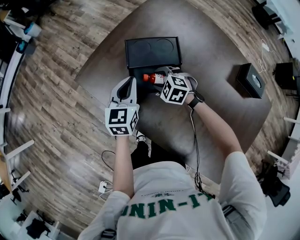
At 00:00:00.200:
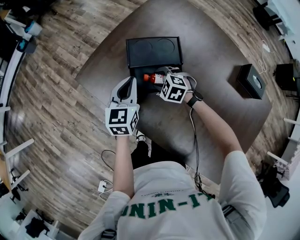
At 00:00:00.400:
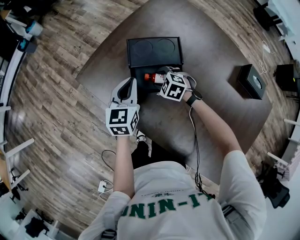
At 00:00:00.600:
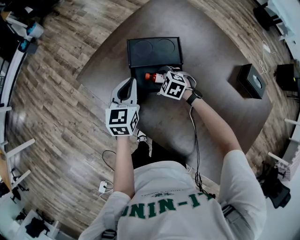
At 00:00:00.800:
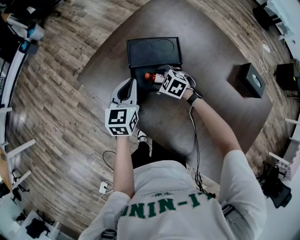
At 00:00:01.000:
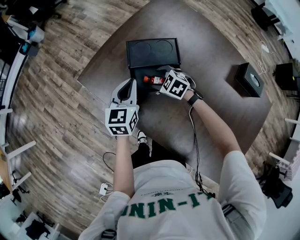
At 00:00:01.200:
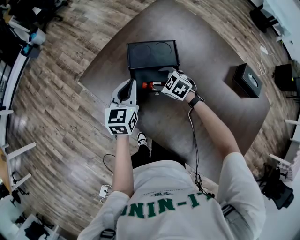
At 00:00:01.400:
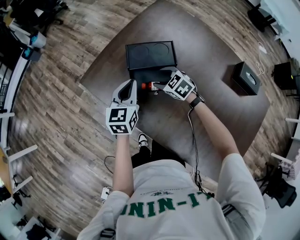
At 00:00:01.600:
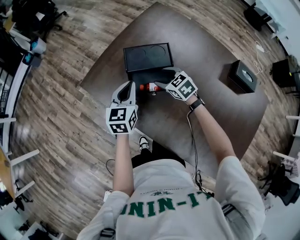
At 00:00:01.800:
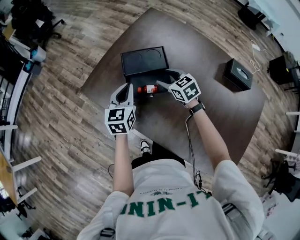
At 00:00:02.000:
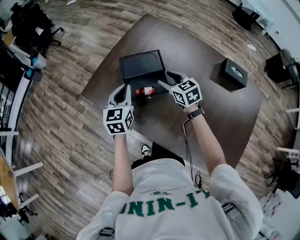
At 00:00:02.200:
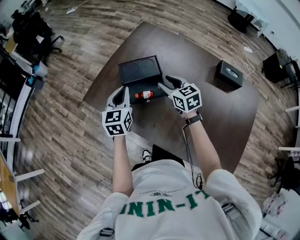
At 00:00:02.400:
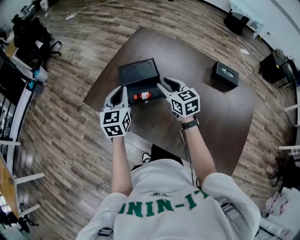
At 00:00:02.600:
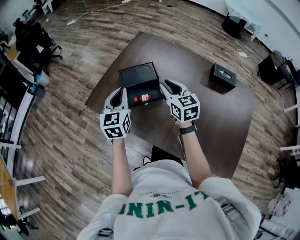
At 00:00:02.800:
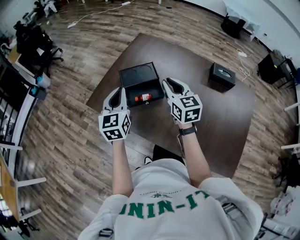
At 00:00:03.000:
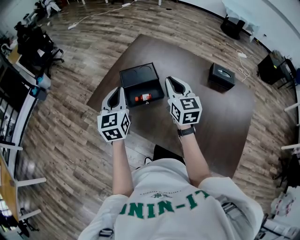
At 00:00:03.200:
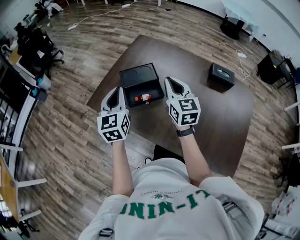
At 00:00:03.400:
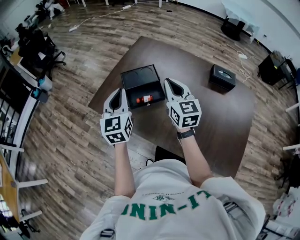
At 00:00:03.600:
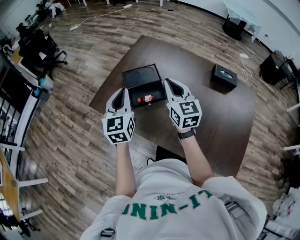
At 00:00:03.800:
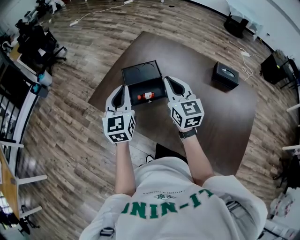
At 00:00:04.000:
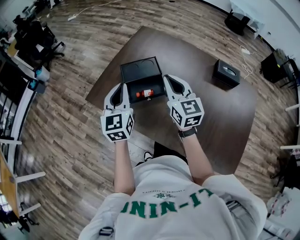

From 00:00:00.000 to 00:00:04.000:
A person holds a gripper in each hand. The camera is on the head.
From 00:00:00.000 to 00:00:01.400: The right gripper swivels about 20 degrees.
From 00:00:01.400 to 00:00:02.600: The left gripper goes roughly 15 cm upward and backward. The right gripper travels upward and backward by roughly 25 cm, points its fingers some 30 degrees further upward, and closes up.
From 00:00:02.600 to 00:00:04.000: The right gripper ends up roughly 5 cm from where it was.

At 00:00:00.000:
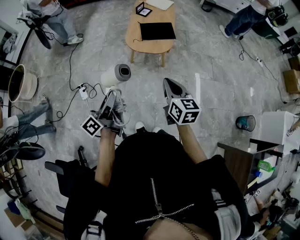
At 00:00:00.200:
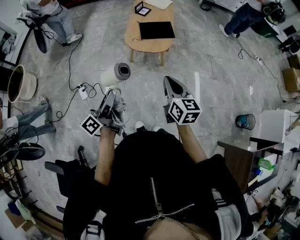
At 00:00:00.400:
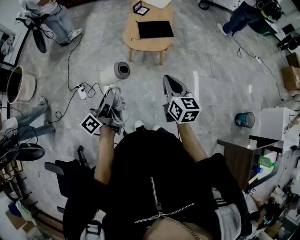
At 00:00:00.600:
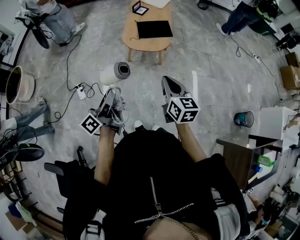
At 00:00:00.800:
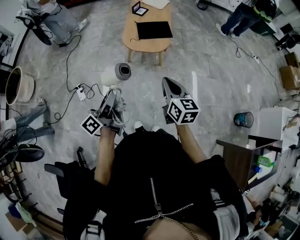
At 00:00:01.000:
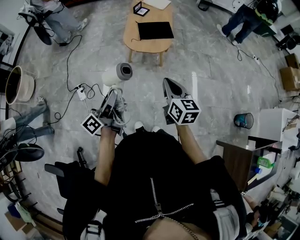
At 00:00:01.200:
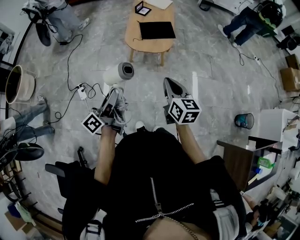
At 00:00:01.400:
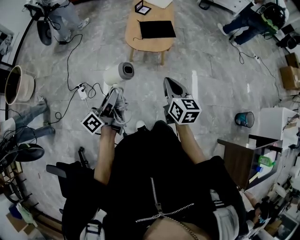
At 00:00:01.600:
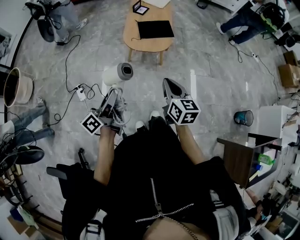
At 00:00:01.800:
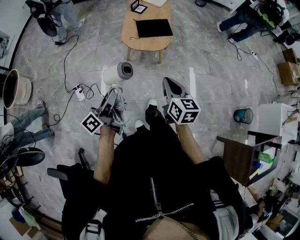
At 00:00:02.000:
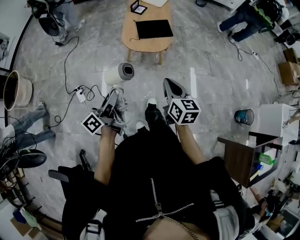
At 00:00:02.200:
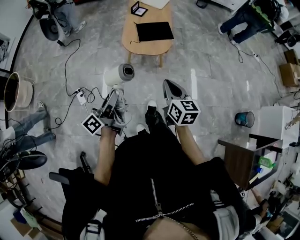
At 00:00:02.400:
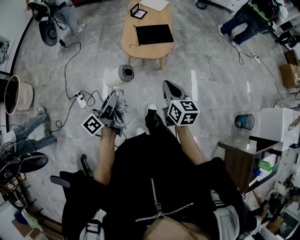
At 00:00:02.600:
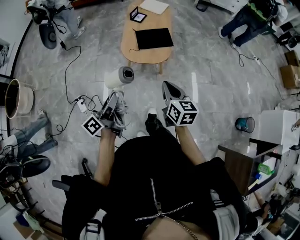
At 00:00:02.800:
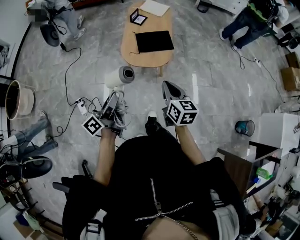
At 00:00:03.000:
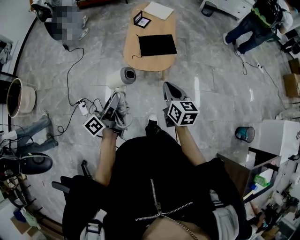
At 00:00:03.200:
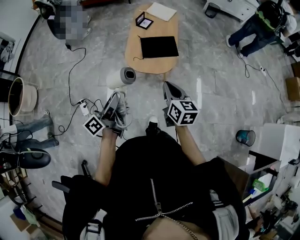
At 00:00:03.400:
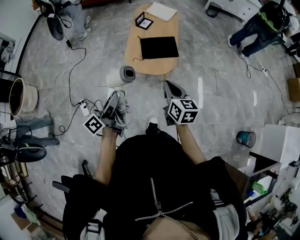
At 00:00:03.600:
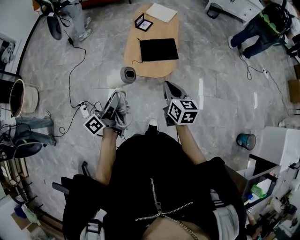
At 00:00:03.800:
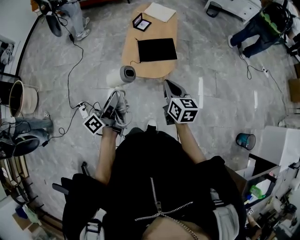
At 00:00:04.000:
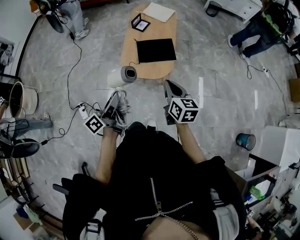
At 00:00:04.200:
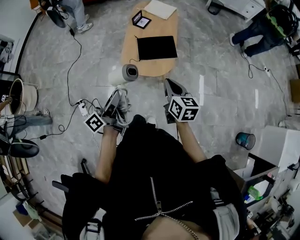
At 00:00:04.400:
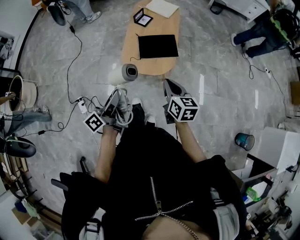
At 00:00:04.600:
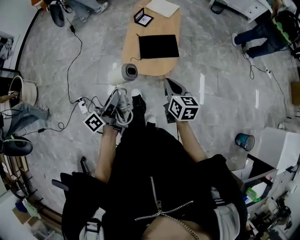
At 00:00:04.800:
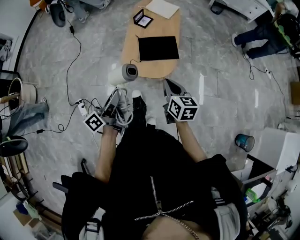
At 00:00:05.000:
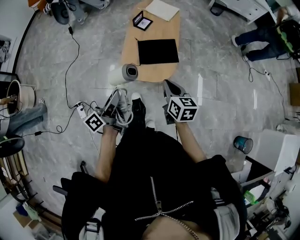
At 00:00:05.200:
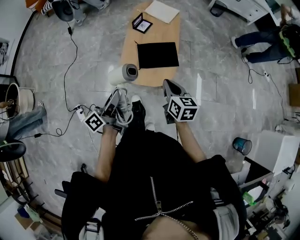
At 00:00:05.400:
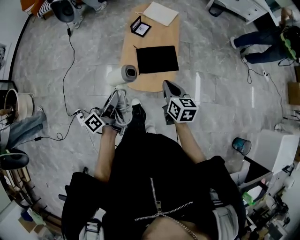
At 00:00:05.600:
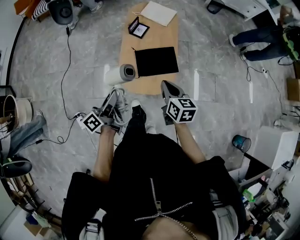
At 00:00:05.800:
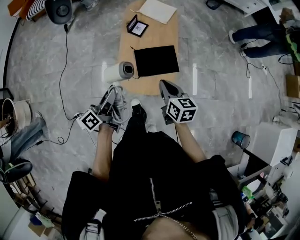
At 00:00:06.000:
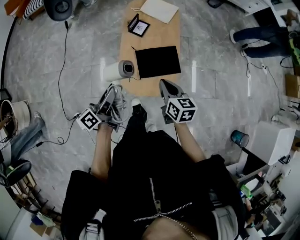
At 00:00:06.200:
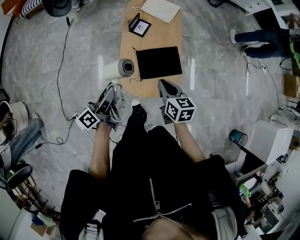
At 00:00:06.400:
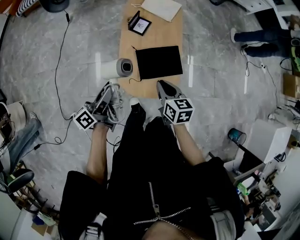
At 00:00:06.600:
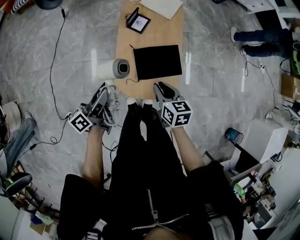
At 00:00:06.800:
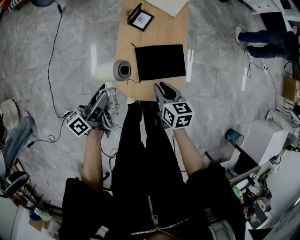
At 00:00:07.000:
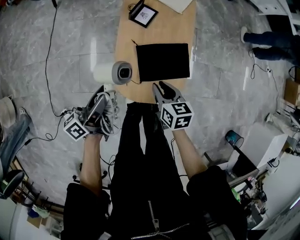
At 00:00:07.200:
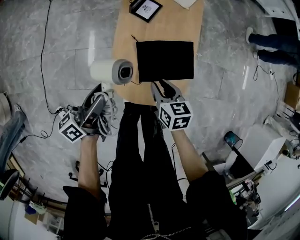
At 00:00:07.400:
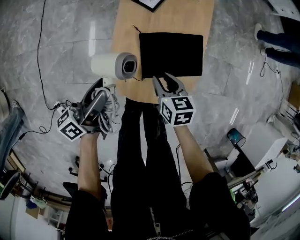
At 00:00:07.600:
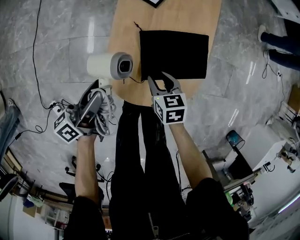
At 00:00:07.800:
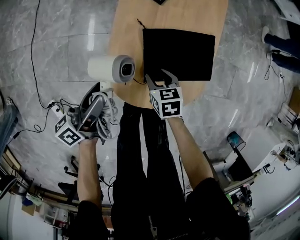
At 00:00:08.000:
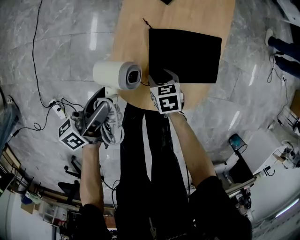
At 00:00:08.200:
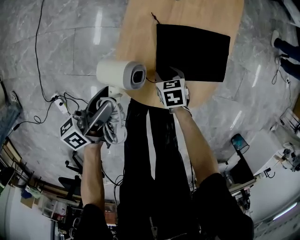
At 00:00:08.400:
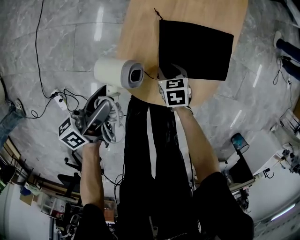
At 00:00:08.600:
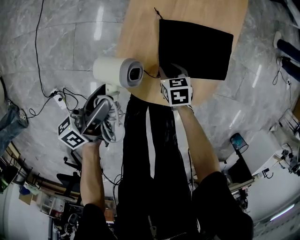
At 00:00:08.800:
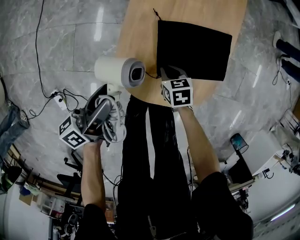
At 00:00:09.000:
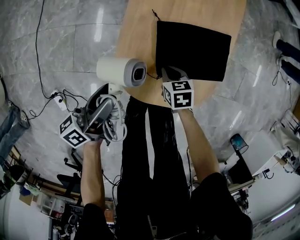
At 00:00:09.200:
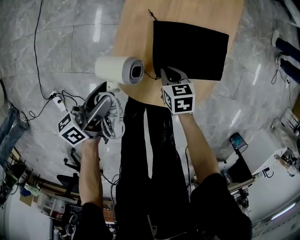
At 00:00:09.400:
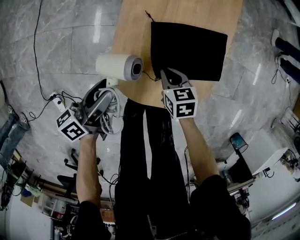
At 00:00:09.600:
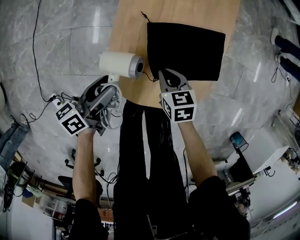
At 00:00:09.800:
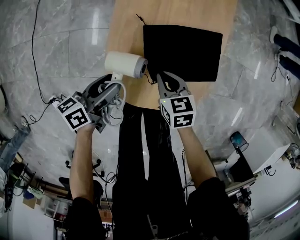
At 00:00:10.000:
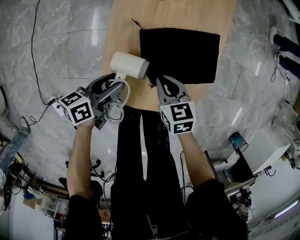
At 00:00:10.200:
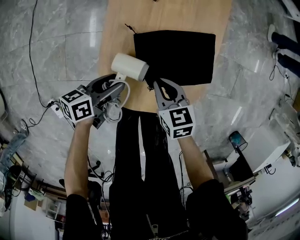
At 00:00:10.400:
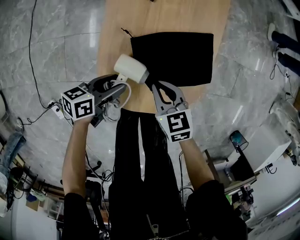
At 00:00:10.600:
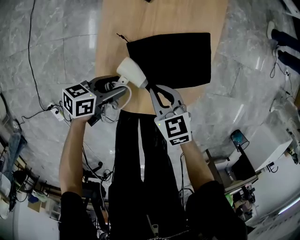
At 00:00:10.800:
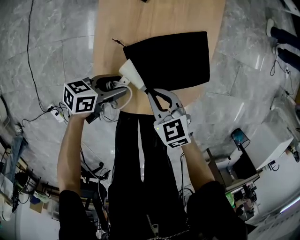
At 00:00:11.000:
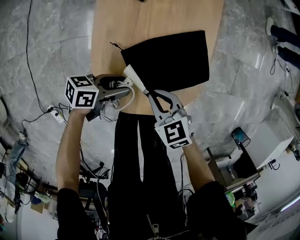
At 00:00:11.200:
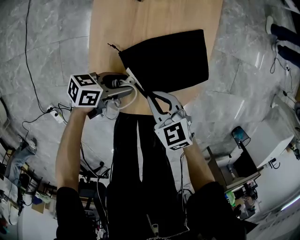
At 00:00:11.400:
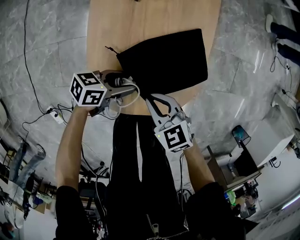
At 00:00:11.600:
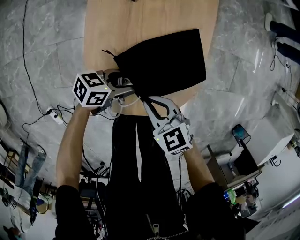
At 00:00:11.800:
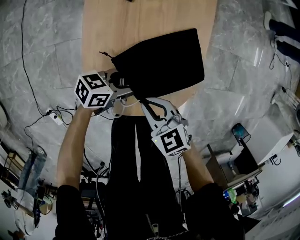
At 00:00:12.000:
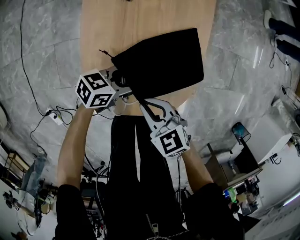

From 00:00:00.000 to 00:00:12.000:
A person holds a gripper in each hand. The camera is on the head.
From 00:00:00.000 to 00:00:01.600: There are only small adjustments of the grippers.
From 00:00:01.600 to 00:00:03.000: Both grippers travel together forward, some 15 cm.
From 00:00:03.000 to 00:00:04.400: The grippers both shift forward by approximately 10 cm.
From 00:00:04.400 to 00:00:06.000: Both grippers travel together forward, approximately 25 cm.
From 00:00:06.000 to 00:00:07.600: Both grippers move downward, approximately 30 cm. The right gripper rotates roughly 30 degrees, and opens its fingers.
From 00:00:07.600 to 00:00:09.000: The right gripper travels downward by some 10 cm, and closes up. Meanwhile the left gripper moves roughly 5 cm.
From 00:00:09.000 to 00:00:10.400: The left gripper is displaced downward and to the right by some 15 cm, and changes its angle by some 40 degrees. The right gripper moves upward, about 10 cm.
From 00:00:10.400 to 00:00:12.000: The left gripper ends up about 15 cm from where it was, and swivels about 30 degrees.

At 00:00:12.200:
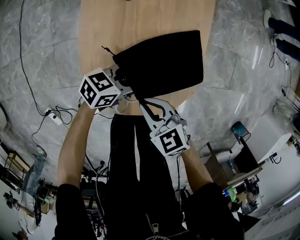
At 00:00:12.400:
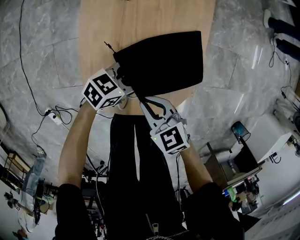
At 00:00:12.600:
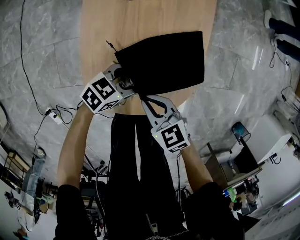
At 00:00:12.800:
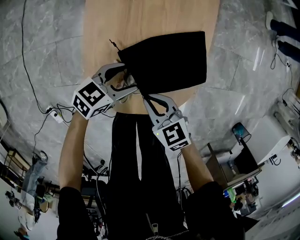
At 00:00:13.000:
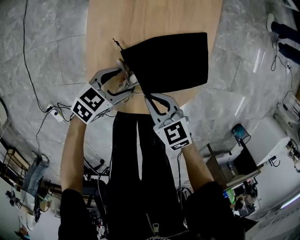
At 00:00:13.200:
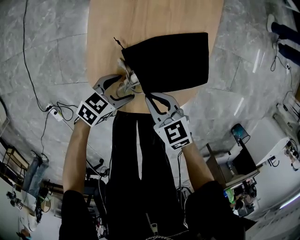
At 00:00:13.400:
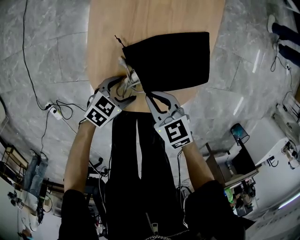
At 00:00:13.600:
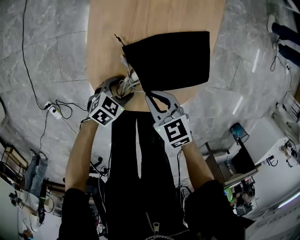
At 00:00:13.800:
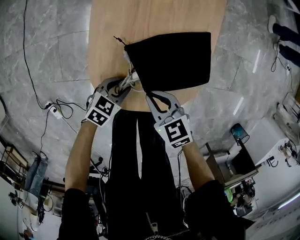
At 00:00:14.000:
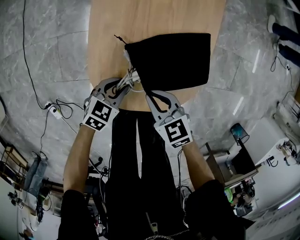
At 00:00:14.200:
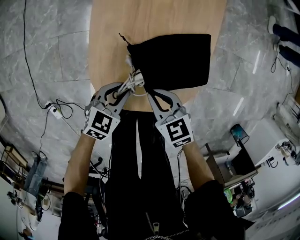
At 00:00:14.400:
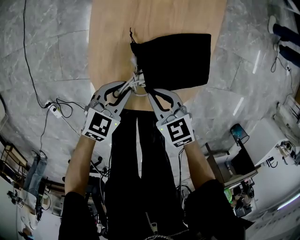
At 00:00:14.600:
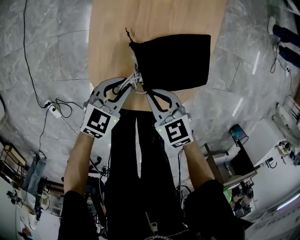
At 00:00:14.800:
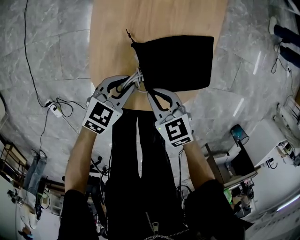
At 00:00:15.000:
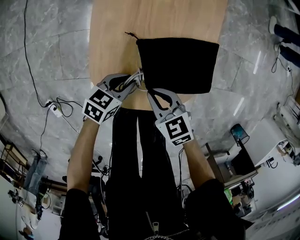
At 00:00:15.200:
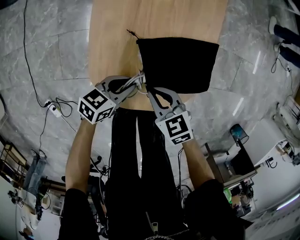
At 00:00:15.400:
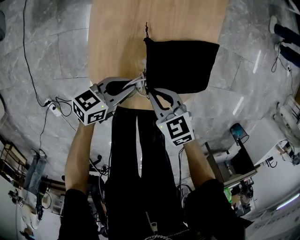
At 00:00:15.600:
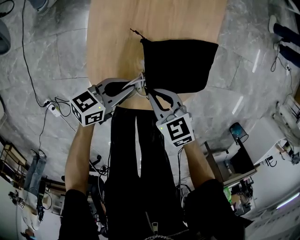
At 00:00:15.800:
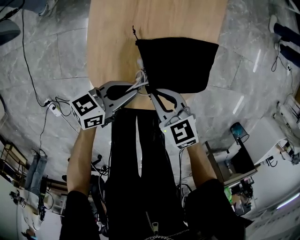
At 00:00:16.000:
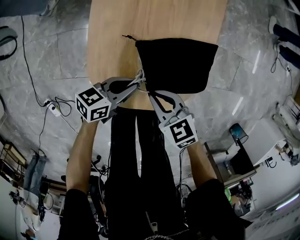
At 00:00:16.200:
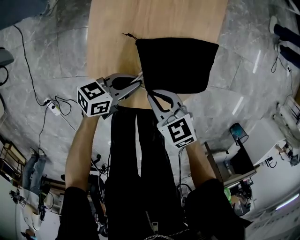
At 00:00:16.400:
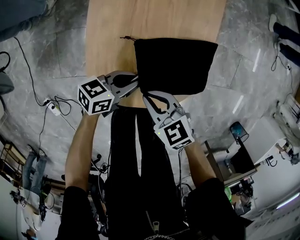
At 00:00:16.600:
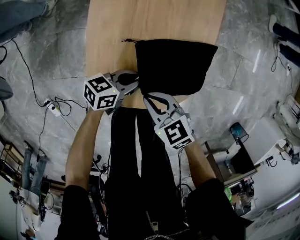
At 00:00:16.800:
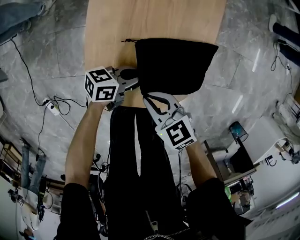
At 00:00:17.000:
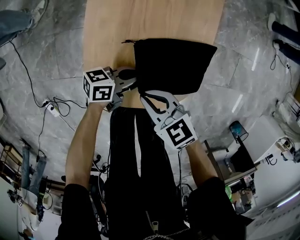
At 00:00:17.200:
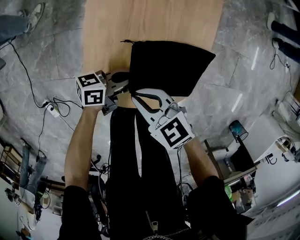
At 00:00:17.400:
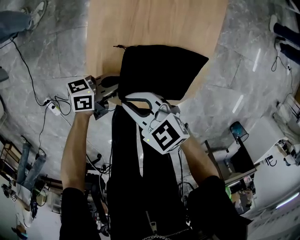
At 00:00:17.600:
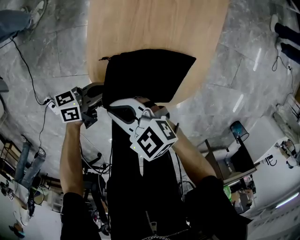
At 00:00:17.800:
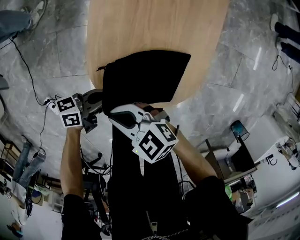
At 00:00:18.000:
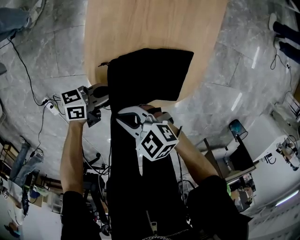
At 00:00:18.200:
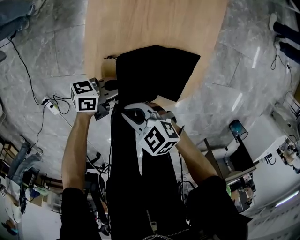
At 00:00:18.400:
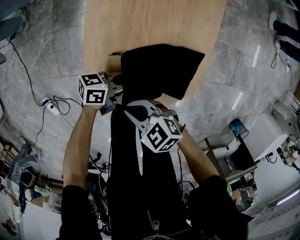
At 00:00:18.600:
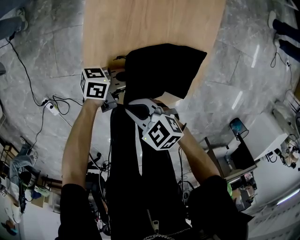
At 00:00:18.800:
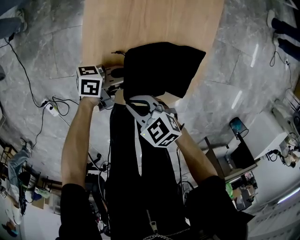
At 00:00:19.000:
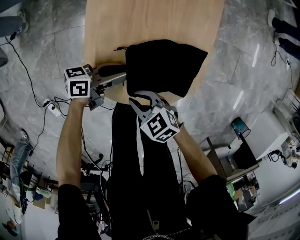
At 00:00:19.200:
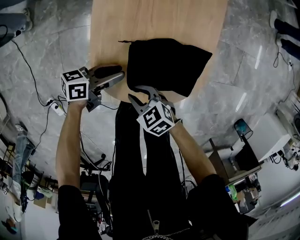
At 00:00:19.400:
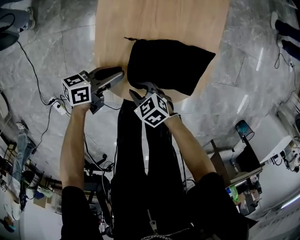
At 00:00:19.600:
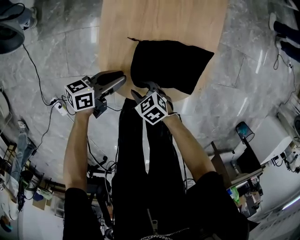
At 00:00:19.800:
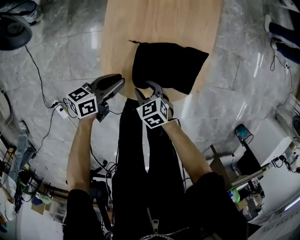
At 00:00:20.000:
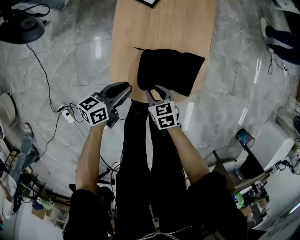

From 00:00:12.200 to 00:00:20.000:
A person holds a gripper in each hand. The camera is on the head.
From 00:00:12.200 to 00:00:13.800: The left gripper moves about 10 cm, and swivels about 30 degrees.
From 00:00:13.800 to 00:00:15.400: The left gripper goes up and down, some 10 cm each way, reversing 2 times, and swivels some 30 degrees.
From 00:00:15.400 to 00:00:16.800: The left gripper changes place by about 5 cm.
From 00:00:16.800 to 00:00:18.400: The right gripper moves some 10 cm.
From 00:00:18.400 to 00:00:20.000: The left gripper ends up roughly 15 cm from where it was, and turns by roughly 30 degrees, while the right gripper rotates roughly 40 degrees, and opens up.
